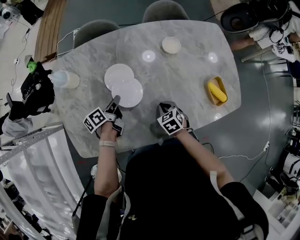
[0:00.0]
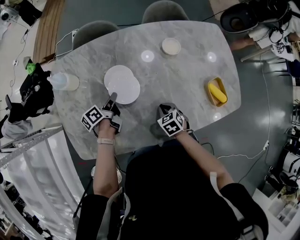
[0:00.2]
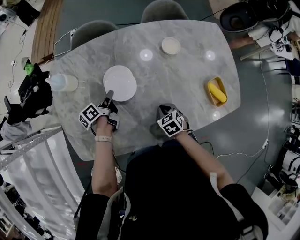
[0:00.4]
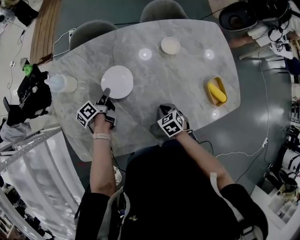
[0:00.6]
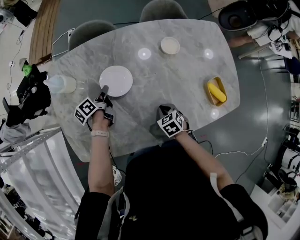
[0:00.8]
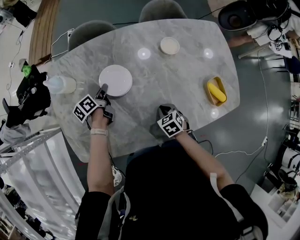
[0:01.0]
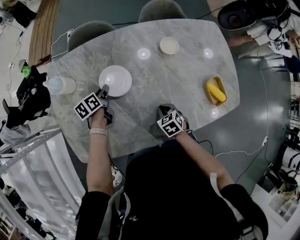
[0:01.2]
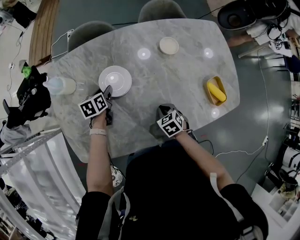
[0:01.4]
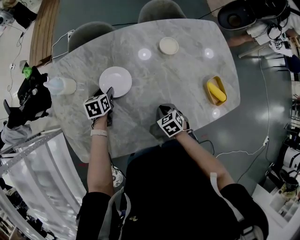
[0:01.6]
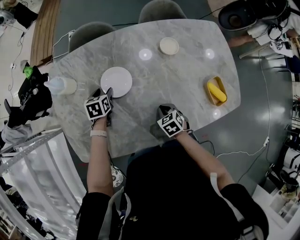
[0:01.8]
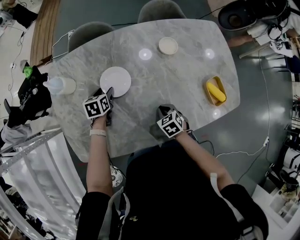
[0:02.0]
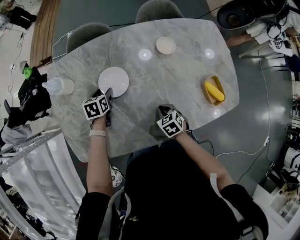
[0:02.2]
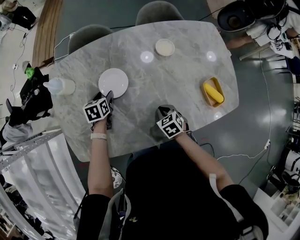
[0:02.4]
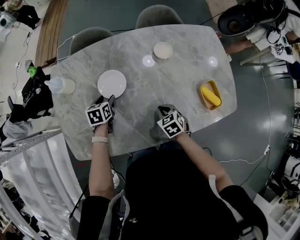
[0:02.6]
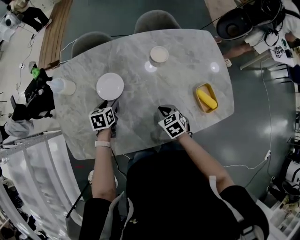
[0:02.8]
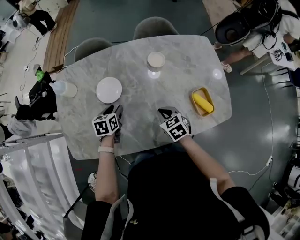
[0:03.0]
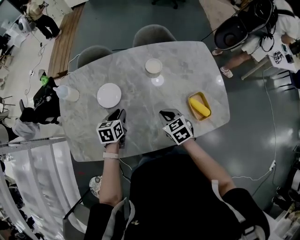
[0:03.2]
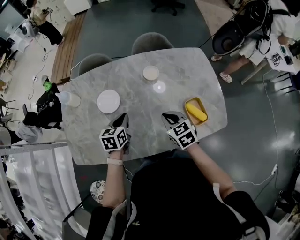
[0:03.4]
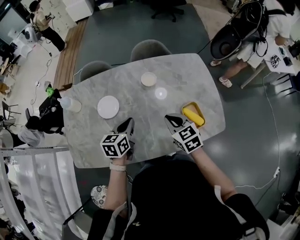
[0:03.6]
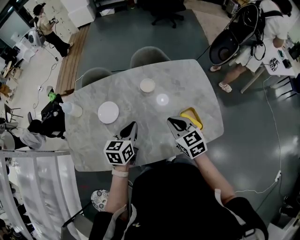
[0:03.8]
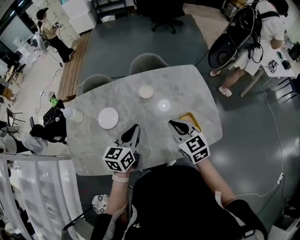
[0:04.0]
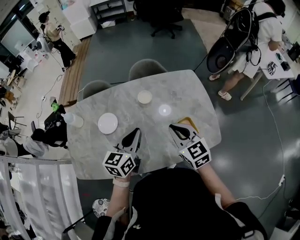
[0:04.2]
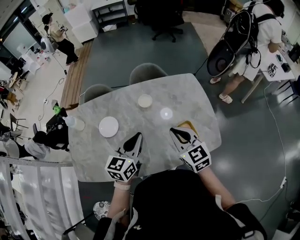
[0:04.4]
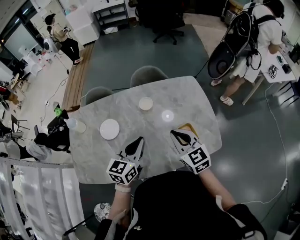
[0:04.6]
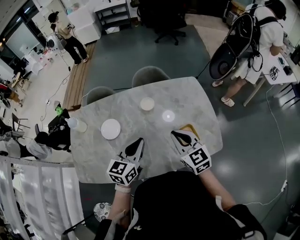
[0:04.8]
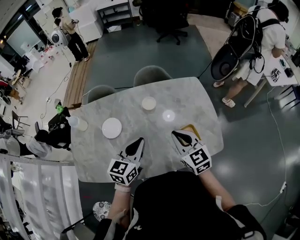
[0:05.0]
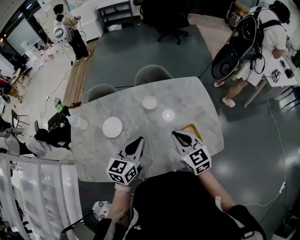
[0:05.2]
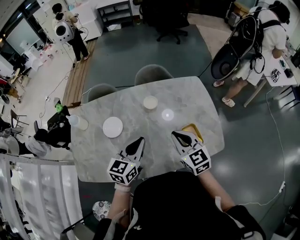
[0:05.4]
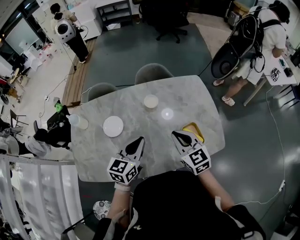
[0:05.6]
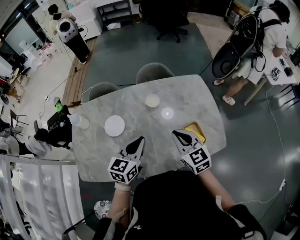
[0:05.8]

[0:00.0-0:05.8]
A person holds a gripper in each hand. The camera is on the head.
0:00.0 to 0:01.4: The left gripper heads forward, covering approximately 10 cm, swivels some 40 degrees, and opens its fingers.
0:01.4 to 0:02.8: The left gripper heads backward and to the right, covering about 10 cm. Meanwhile the right gripper heads upward and to the right, covering roughly 10 cm.
0:02.8 to 0:04.4: Both grippers move upward and to the right, approximately 35 cm. The left gripper points its fingers some 40 degrees further upward, and closes. The right gripper points its fingers approximately 40 degrees further upward.
0:04.4 to 0:05.8: The grippers stay close to where they were, moving slightly.

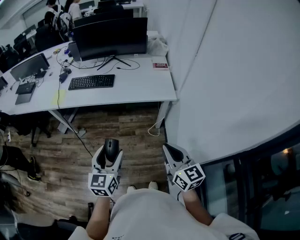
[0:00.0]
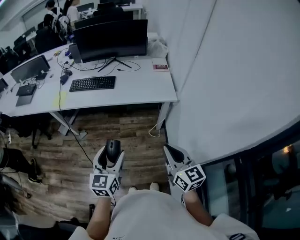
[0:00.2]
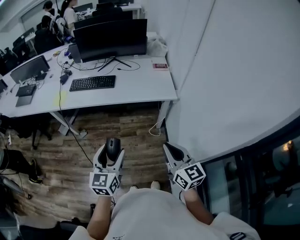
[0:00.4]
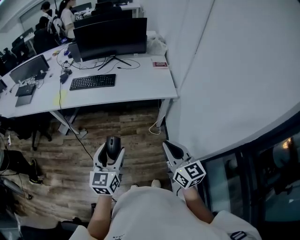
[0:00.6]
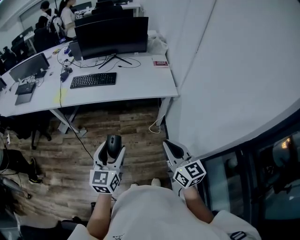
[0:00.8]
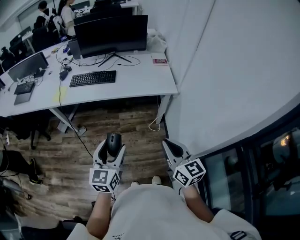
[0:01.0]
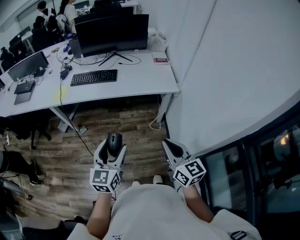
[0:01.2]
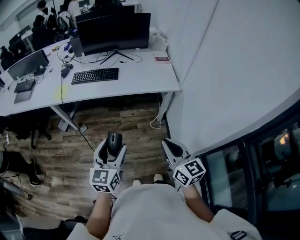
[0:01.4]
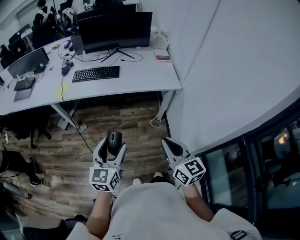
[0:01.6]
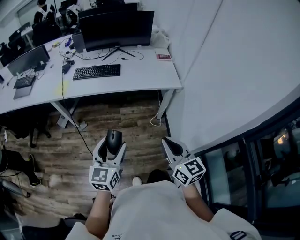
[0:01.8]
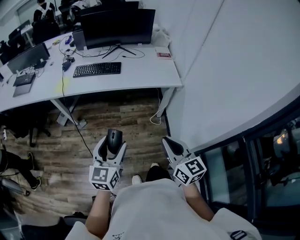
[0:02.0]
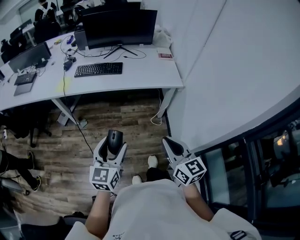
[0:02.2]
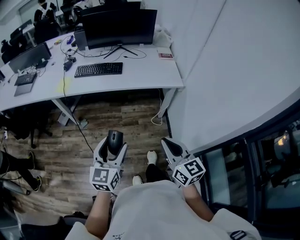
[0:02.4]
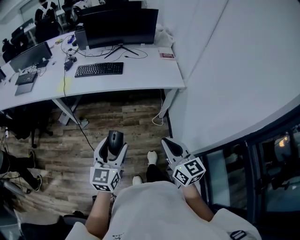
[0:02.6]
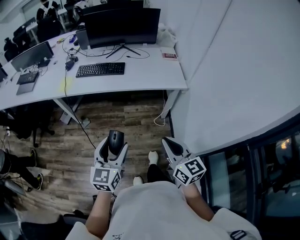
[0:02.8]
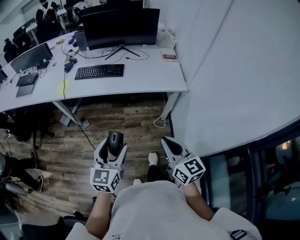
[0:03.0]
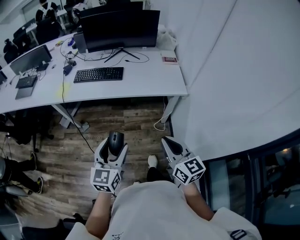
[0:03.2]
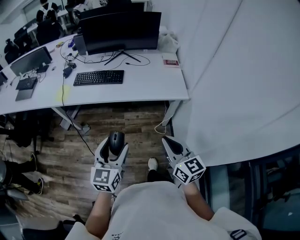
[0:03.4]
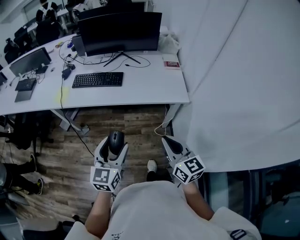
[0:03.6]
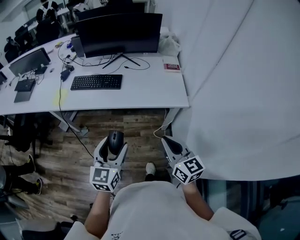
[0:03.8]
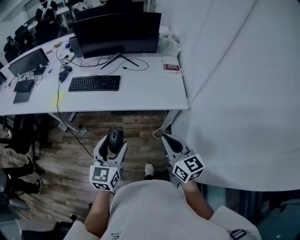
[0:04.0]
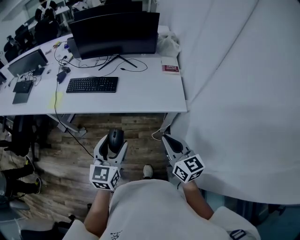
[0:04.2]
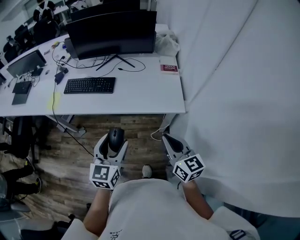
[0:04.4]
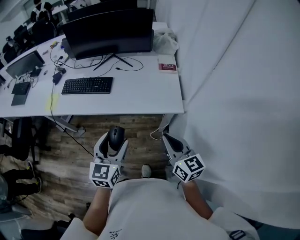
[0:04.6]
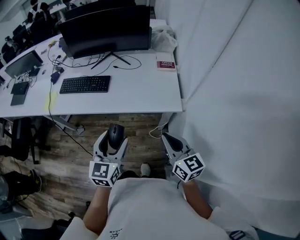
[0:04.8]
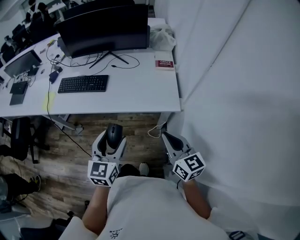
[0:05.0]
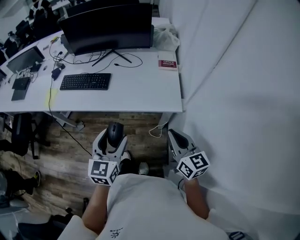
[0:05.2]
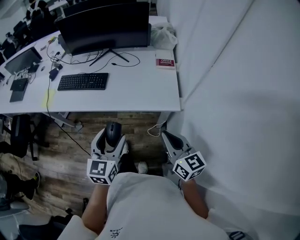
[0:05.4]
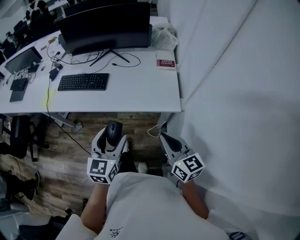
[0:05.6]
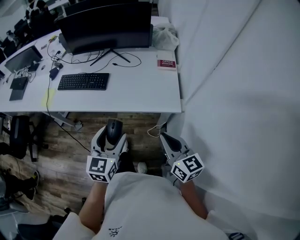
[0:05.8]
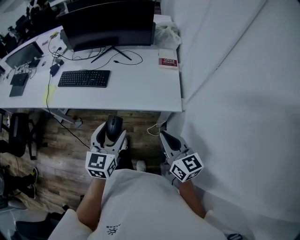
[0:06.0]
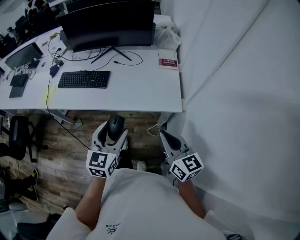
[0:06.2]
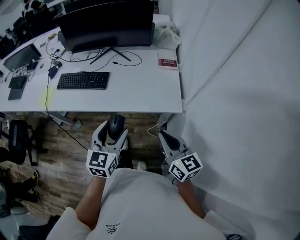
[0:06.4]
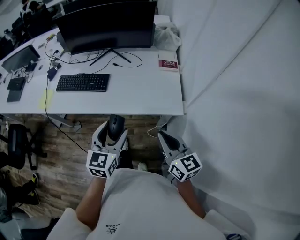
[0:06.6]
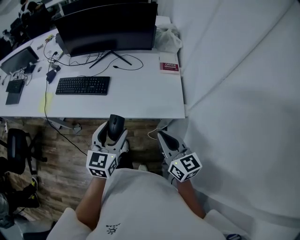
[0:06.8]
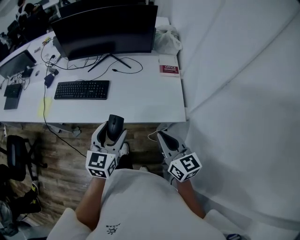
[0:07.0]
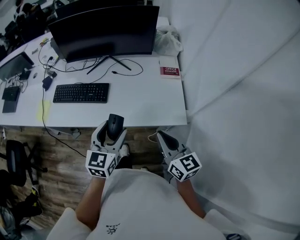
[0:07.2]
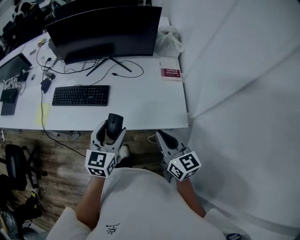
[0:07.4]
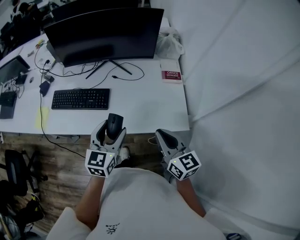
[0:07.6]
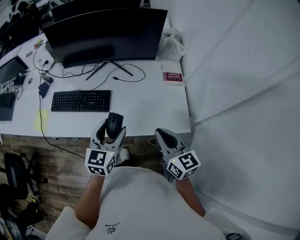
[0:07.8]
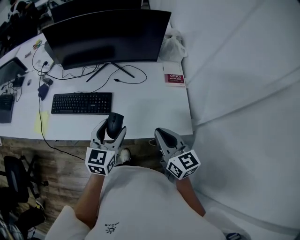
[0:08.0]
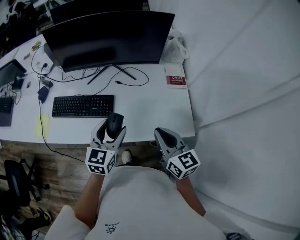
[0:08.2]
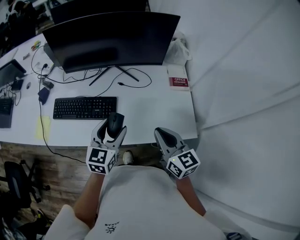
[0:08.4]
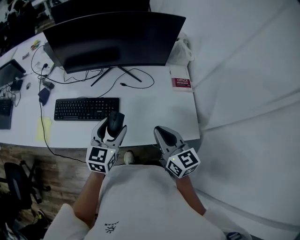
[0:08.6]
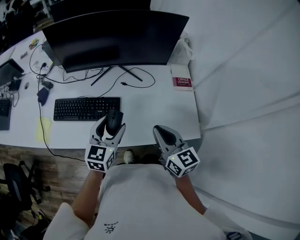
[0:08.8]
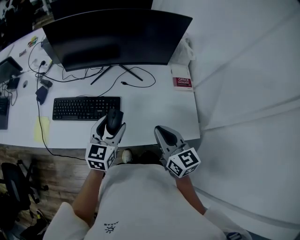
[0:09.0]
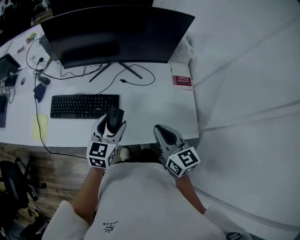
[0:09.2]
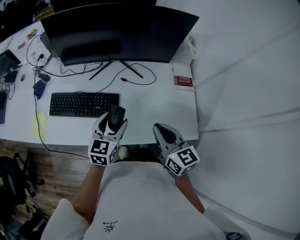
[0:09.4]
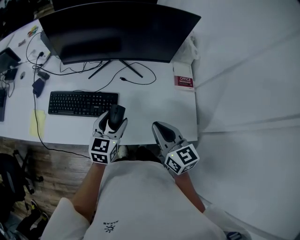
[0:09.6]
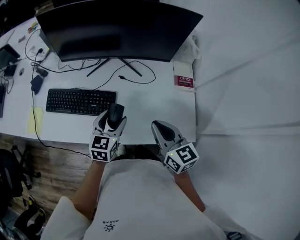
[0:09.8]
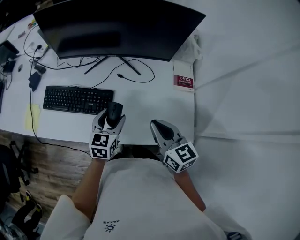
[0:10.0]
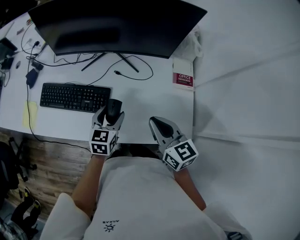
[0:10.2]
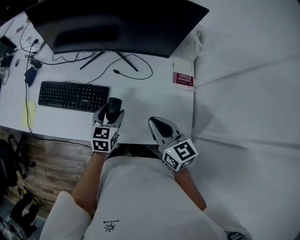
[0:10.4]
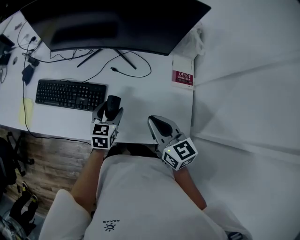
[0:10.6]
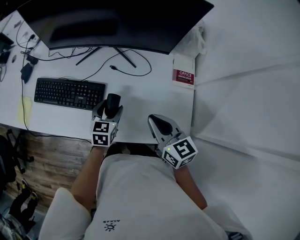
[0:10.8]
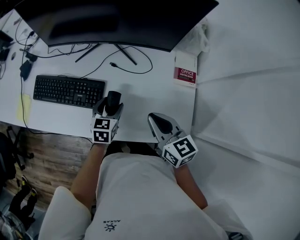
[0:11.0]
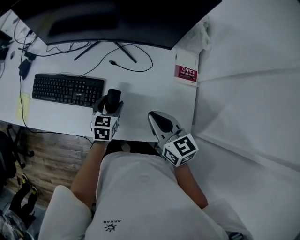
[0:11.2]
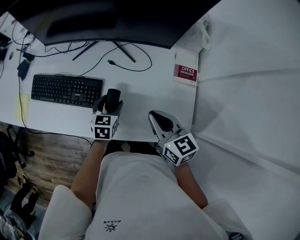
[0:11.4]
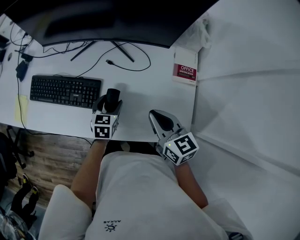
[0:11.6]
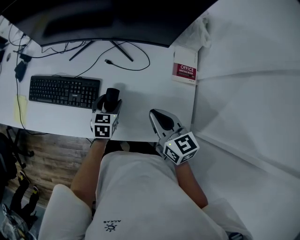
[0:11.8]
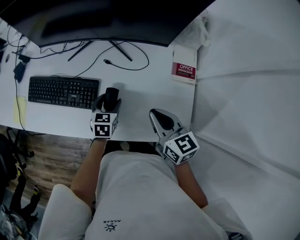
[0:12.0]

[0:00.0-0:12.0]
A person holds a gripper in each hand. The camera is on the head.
0:00.0 to 0:01.6: The right gripper is displaced to the left and backward by roughly 10 cm; the left gripper goes about 5 cm to the left.
0:01.6 to 0:03.0: The grippers move only a little.
0:03.0 to 0:04.4: The grippers both shift forward and to the right by about 25 cm.
0:04.4 to 0:06.0: The left gripper goes some 5 cm to the right and forward. The right gripper shifts by roughly 5 cm.
0:06.0 to 0:07.6: The right gripper shifts some 15 cm forward and to the left, while the left gripper heads forward, covering roughly 15 cm.
0:07.6 to 0:09.0: The left gripper heads forward and to the left, covering some 15 cm. The right gripper shifts approximately 15 cm to the left and forward.
0:09.0 to 0:10.4: The left gripper moves downward, to the right and forward, roughly 15 cm. The right gripper is displaced forward by approximately 5 cm.
0:10.4 to 0:12.0: The left gripper heads downward, covering about 10 cm; the right gripper changes place by some 5 cm.

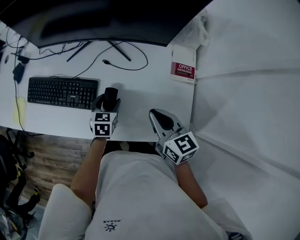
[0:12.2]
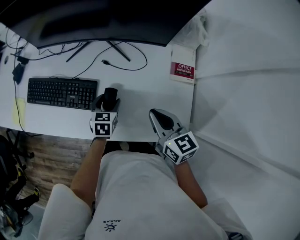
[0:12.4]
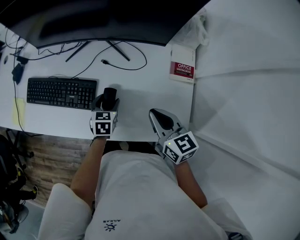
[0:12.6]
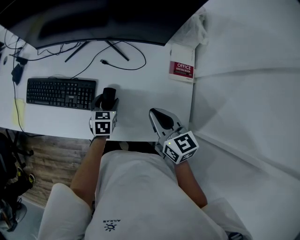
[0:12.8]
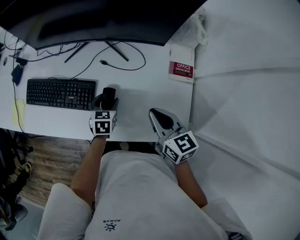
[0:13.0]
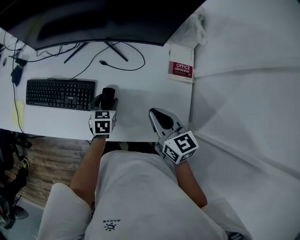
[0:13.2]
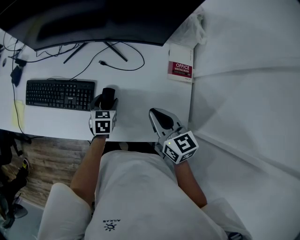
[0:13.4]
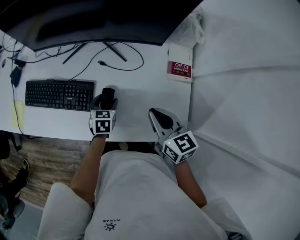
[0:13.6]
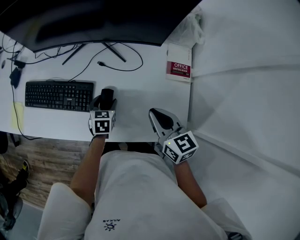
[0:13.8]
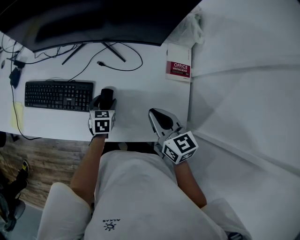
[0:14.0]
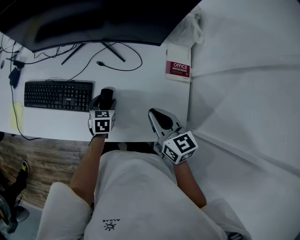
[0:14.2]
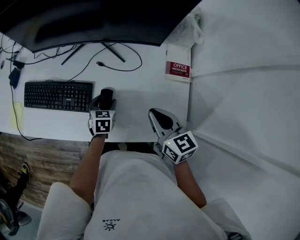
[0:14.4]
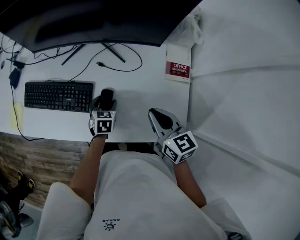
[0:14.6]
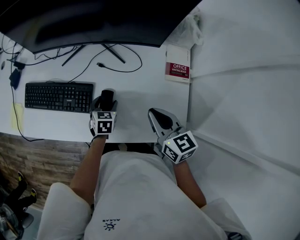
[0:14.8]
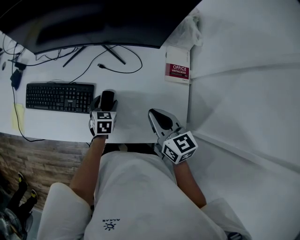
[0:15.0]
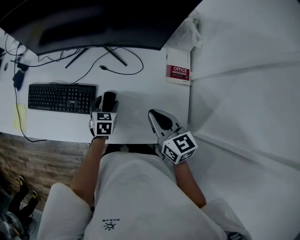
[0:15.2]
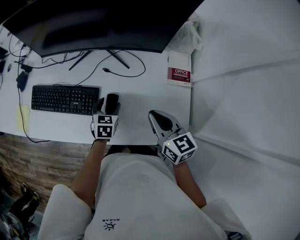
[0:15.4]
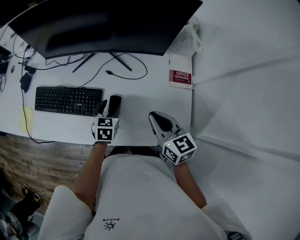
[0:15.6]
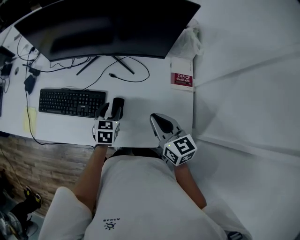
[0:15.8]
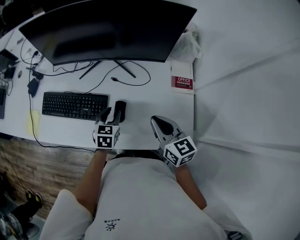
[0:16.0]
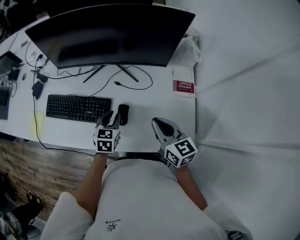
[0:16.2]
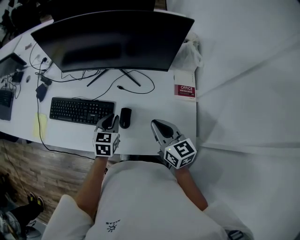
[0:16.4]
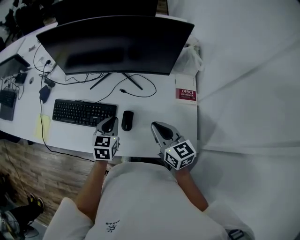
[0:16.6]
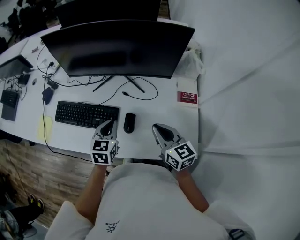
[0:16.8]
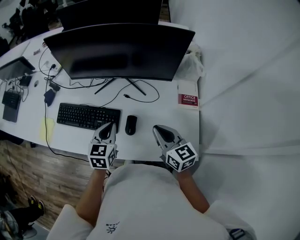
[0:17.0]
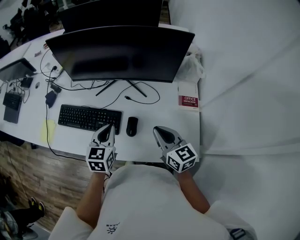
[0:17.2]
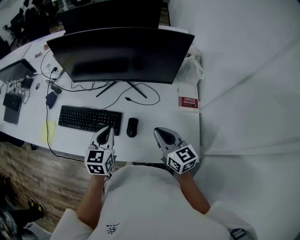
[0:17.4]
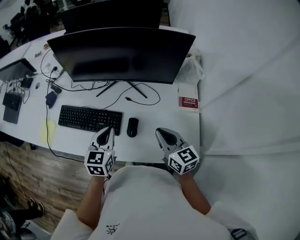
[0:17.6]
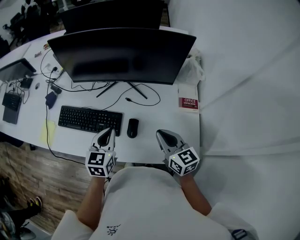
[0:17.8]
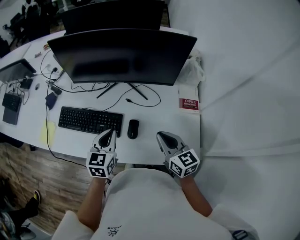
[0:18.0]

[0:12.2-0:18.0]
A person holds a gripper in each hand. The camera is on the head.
0:12.2 to 0:13.6: The grippers stay close to where they were, moving slightly.
0:13.6 to 0:15.0: The two grippers keep their place.
0:15.0 to 0:16.6: The right gripper goes approximately 5 cm to the left; the left gripper heads upward, covering some 15 cm, and closes up.
0:16.6 to 0:18.0: The left gripper is displaced upward by some 5 cm.
